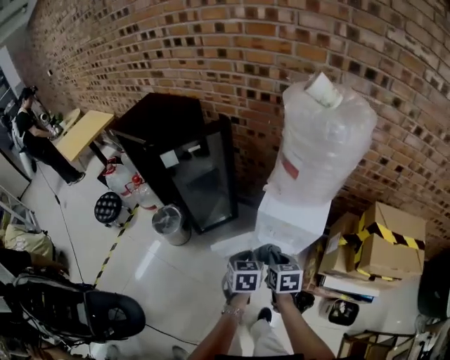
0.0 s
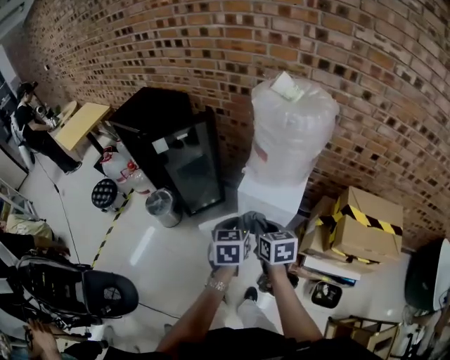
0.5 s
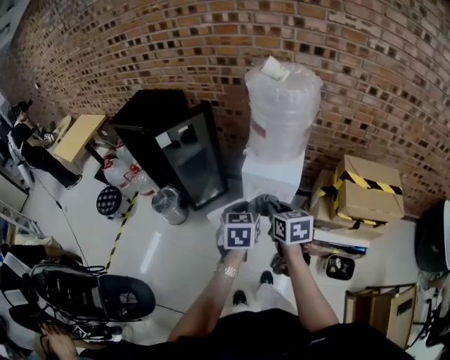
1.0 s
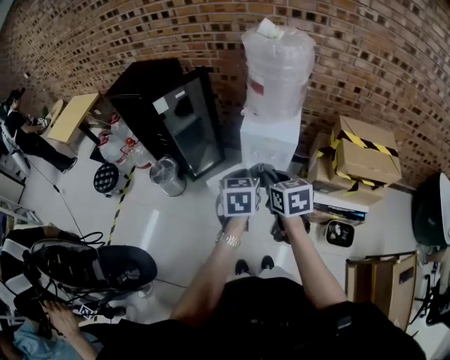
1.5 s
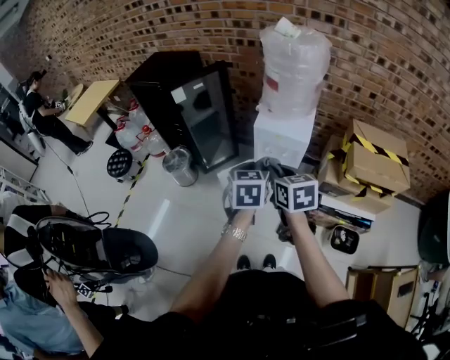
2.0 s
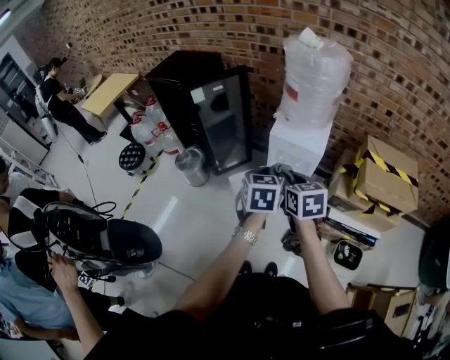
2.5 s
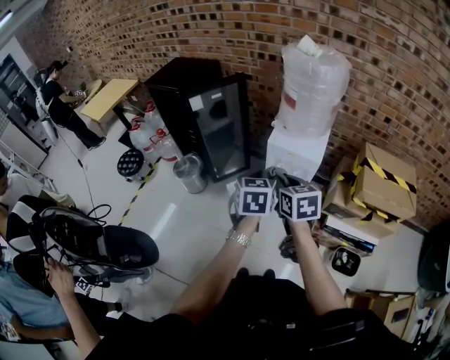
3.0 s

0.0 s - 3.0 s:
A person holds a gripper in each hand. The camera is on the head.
0.0 s - 1.5 s: The two grippers go roughly 25 cm upward and backward.
1.5 s - 3.0 s: There are only small adjustments of the grippers.

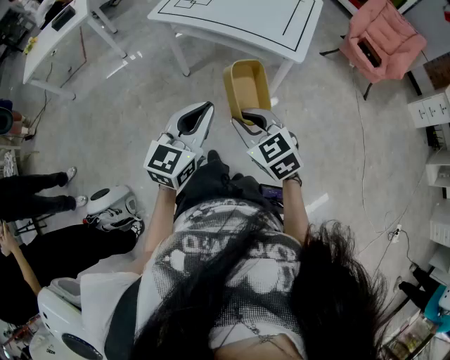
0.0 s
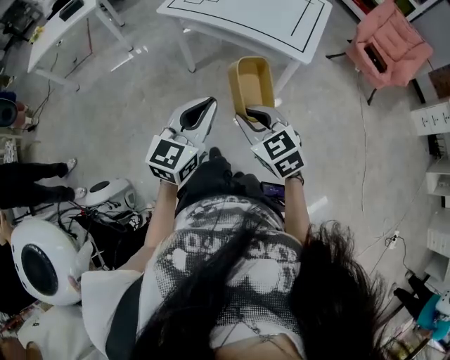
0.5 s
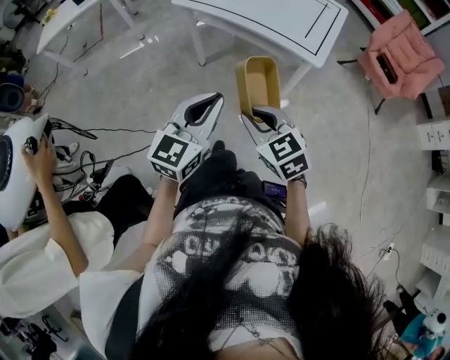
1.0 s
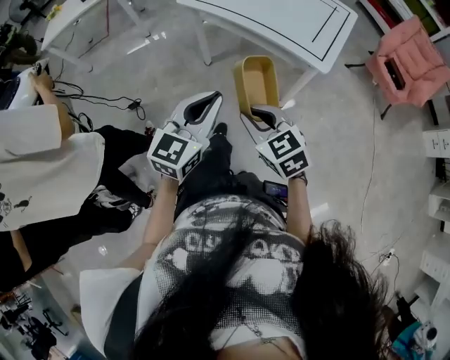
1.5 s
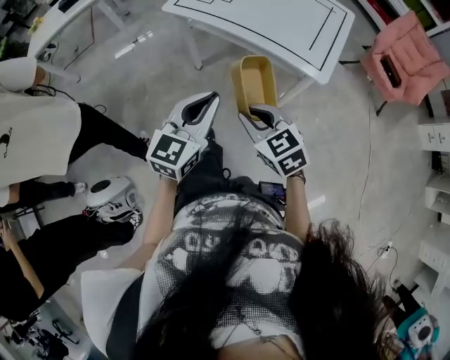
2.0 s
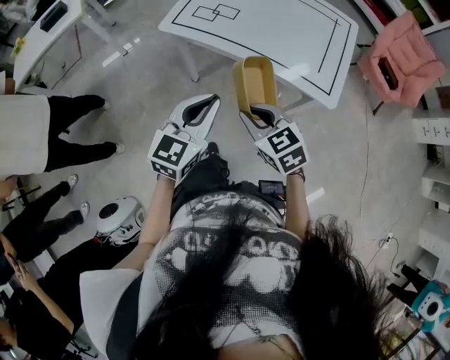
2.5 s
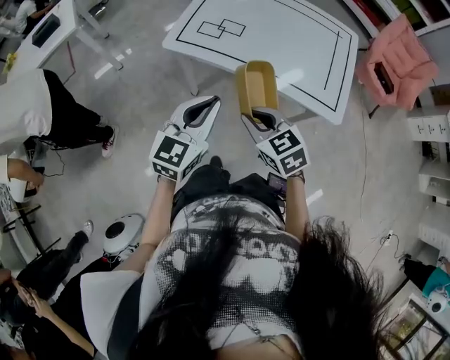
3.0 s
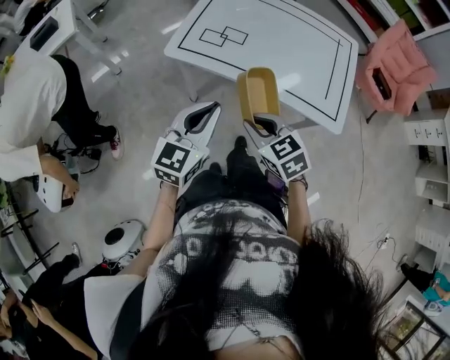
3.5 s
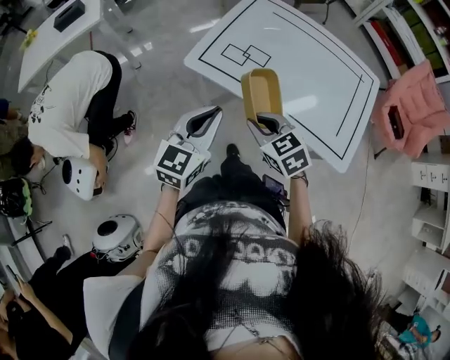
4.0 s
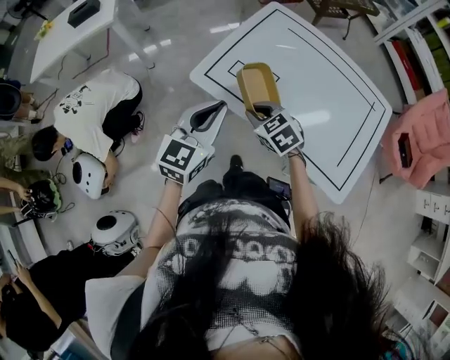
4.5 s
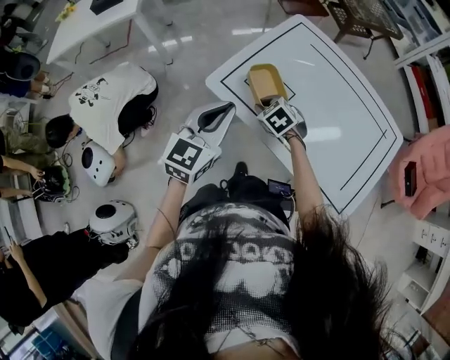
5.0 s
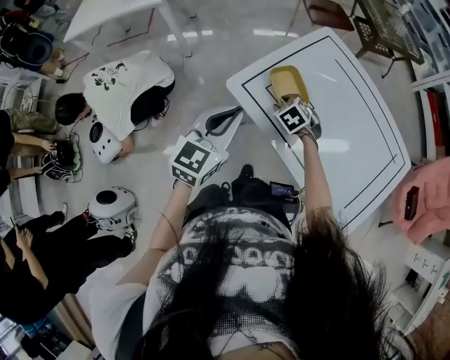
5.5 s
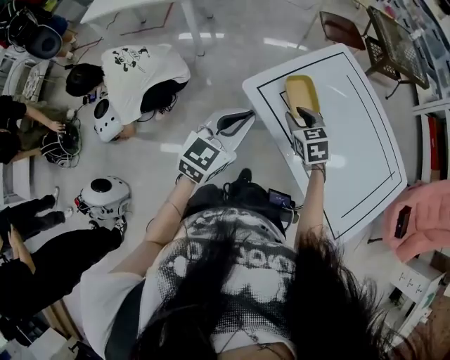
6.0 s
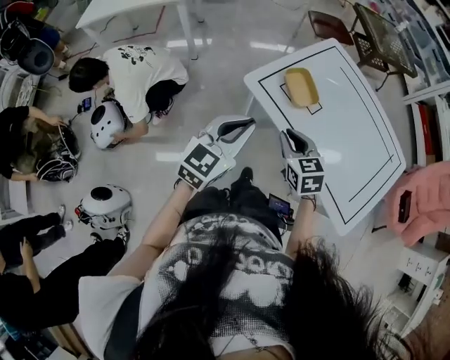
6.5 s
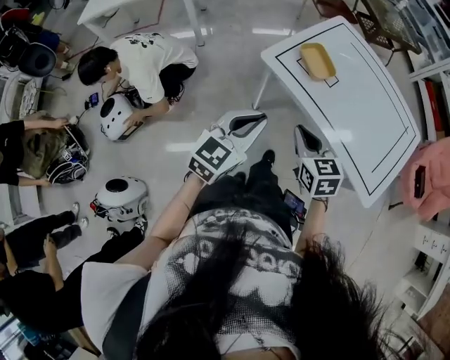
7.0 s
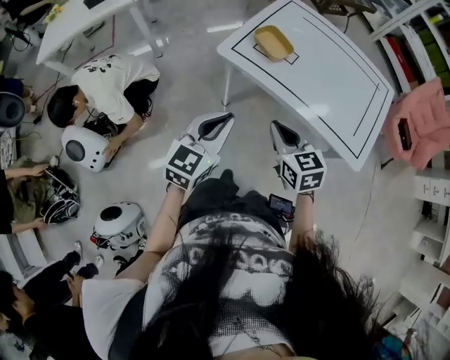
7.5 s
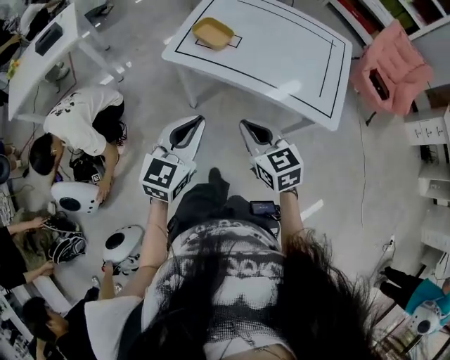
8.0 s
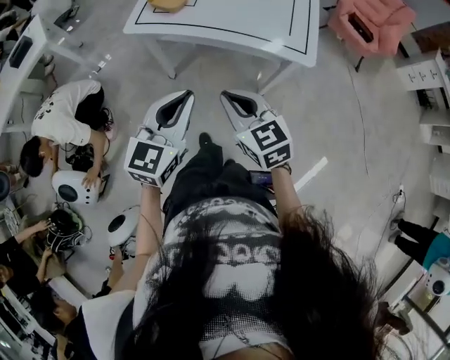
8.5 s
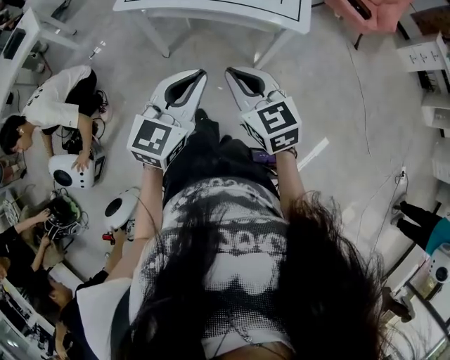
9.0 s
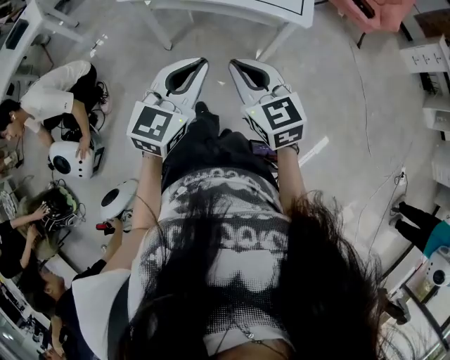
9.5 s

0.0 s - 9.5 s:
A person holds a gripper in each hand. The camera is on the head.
0.0 s - 2.0 s: The two grippers go approximately 15 cm forward.
2.0 s - 4.0 s: The left gripper is displaced forward and to the left by roughly 40 cm; the right gripper is displaced forward by about 35 cm.
4.0 s - 5.5 s: The right gripper goes approximately 30 cm forward and downward, swivels approximately 30 degrees, and opens its fingers. The left gripper is displaced forward by roughly 15 cm.
5.5 s - 7.5 s: The left gripper heads backward, covering some 20 cm, while the right gripper heads backward and upward, covering some 40 cm, angles its fingers upward, by roughly 30 degrees, and closes its fingers.
7.5 s - 9.5 s: The right gripper heads backward and to the right, covering approximately 30 cm. The left gripper shifts roughly 30 cm to the right and backward.

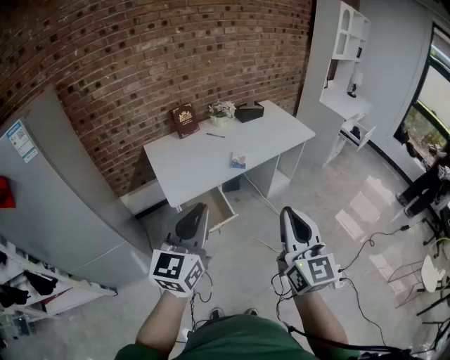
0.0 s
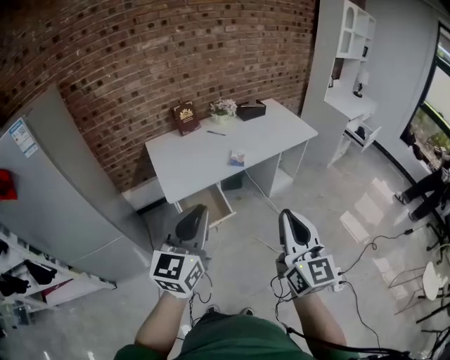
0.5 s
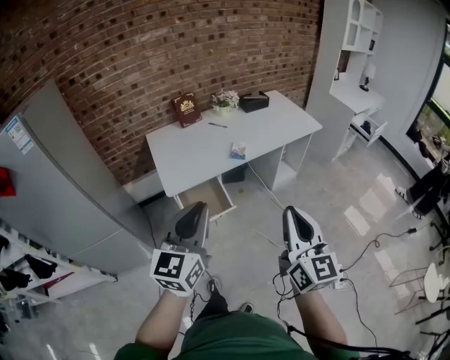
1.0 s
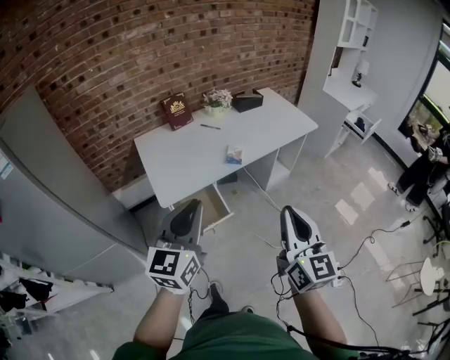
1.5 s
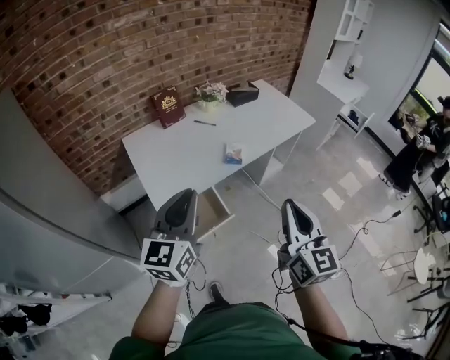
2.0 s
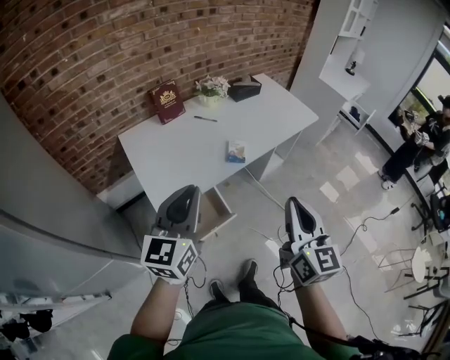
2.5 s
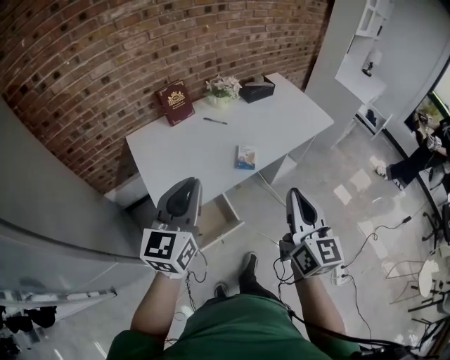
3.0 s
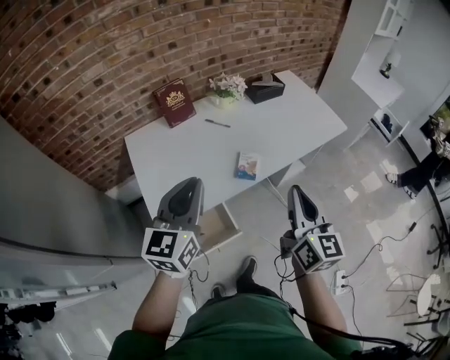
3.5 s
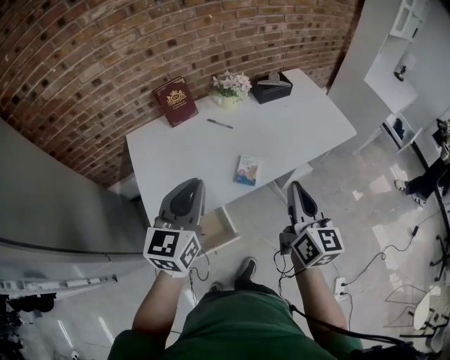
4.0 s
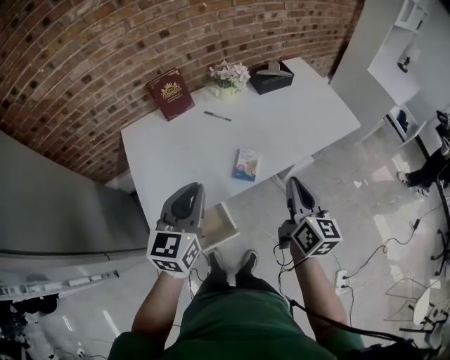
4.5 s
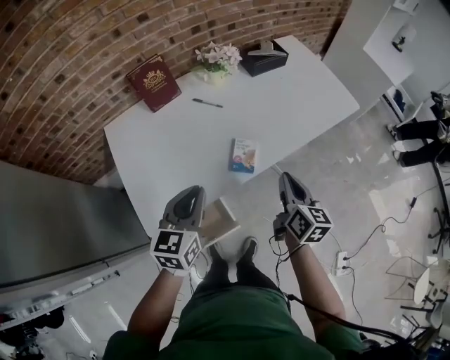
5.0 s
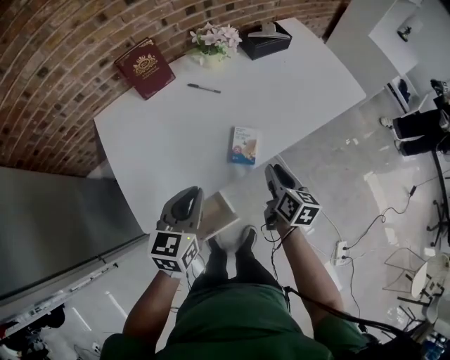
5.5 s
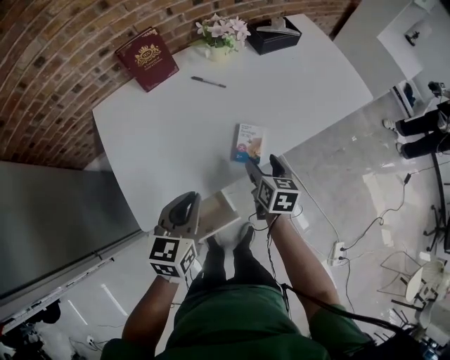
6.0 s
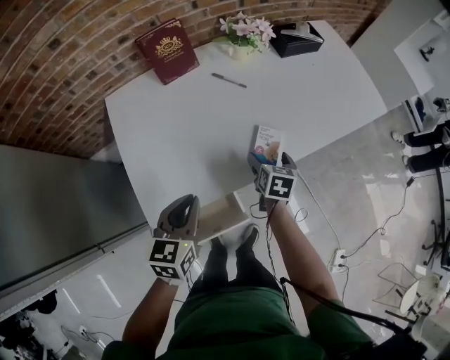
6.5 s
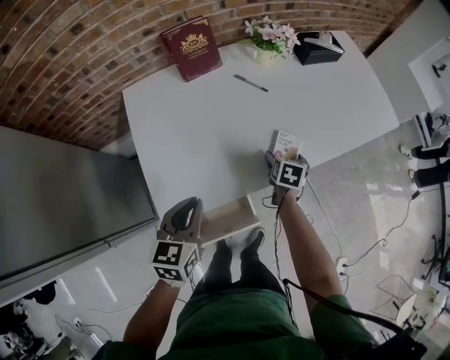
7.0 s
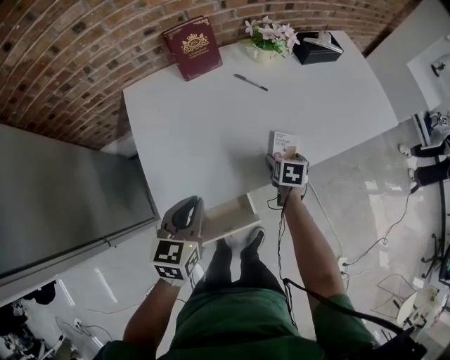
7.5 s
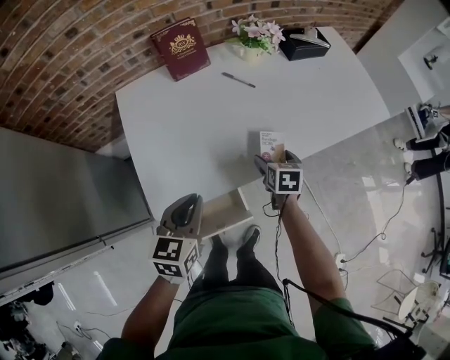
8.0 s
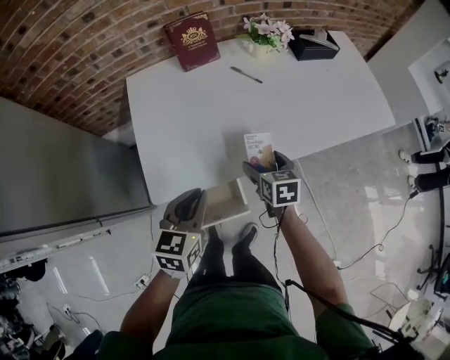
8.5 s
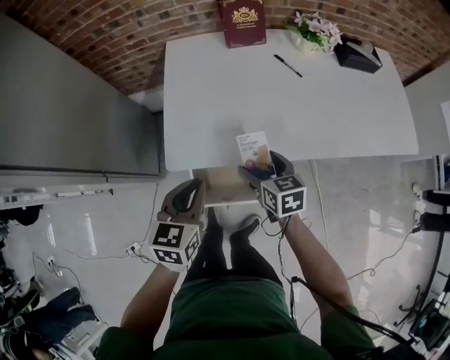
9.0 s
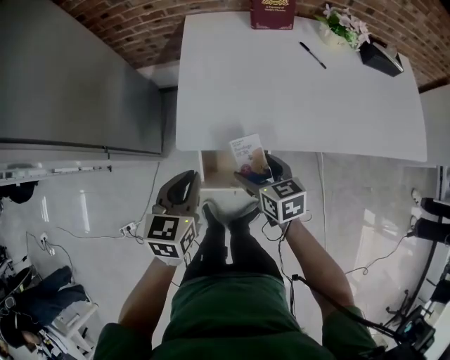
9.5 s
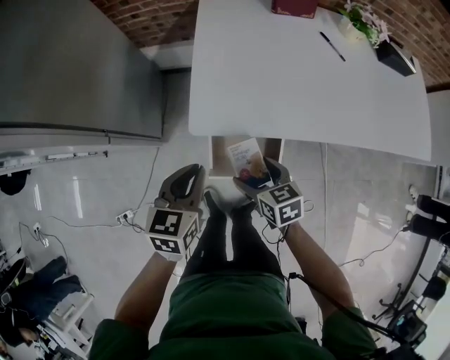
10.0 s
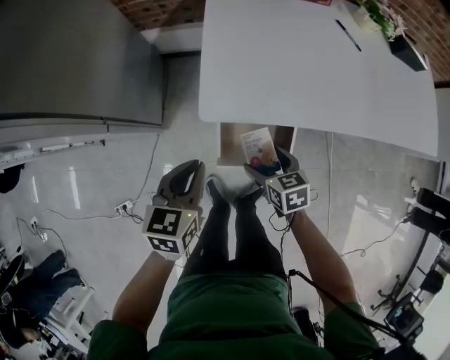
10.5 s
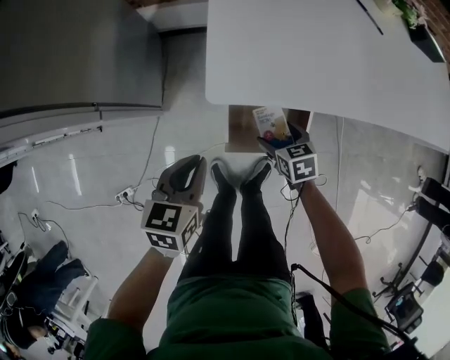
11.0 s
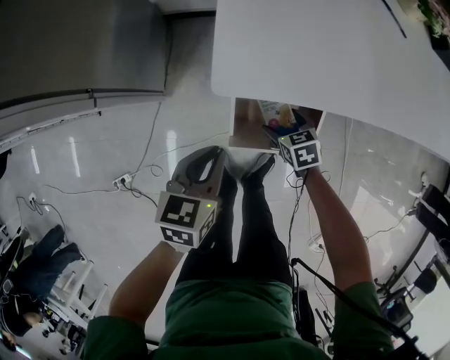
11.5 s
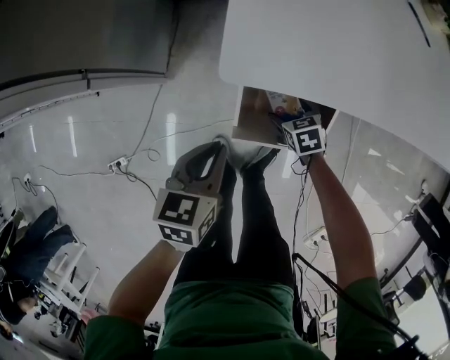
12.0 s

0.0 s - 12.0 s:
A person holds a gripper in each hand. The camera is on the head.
0.0 s - 2.0 s: Both grippers move forward, approximately 15 cm.
2.0 s - 4.0 s: The grippers both shift forward by about 25 cm.
4.0 s - 6.0 s: The right gripper shifts approximately 30 cm downward and forward, points its fingers roughly 30 degrees further downward, and opens its fingers. The left gripper goes about 20 cm downward, and rotates some 20 degrees.
6.0 s - 8.0 s: The left gripper shifts some 5 cm to the left.
8.0 s - 10.0 s: The right gripper ends up roughly 35 cm from where it was, and swivels about 50 degrees, while the left gripper shifts by some 20 cm, and rotates about 20 degrees.
10.0 s - 12.0 s: The right gripper travels downward by some 25 cm, and swivels about 20 degrees, while the left gripper moves downward, approximately 15 cm.

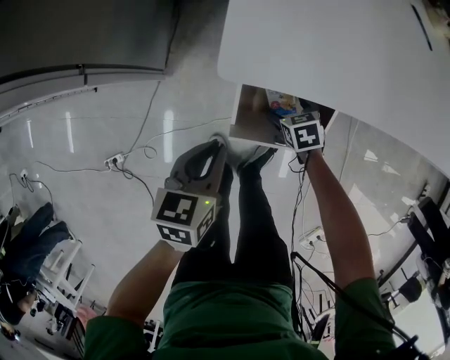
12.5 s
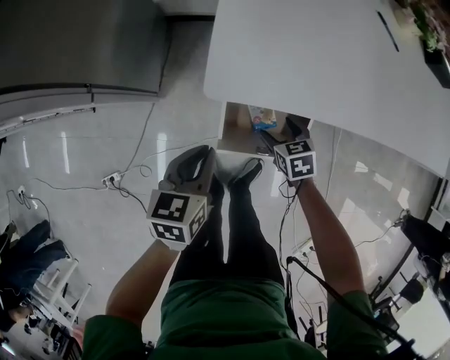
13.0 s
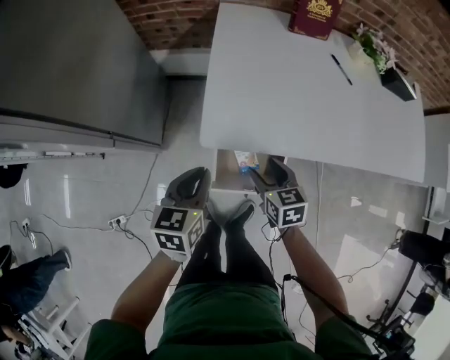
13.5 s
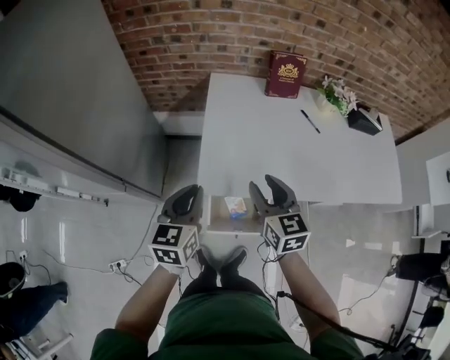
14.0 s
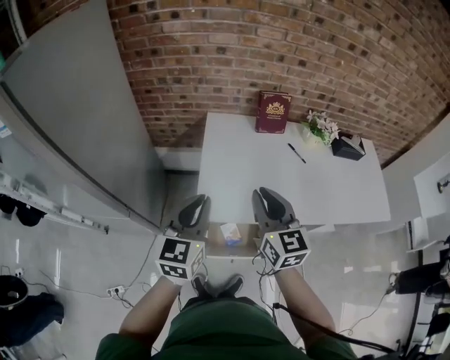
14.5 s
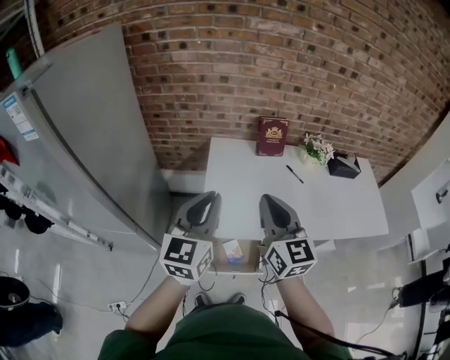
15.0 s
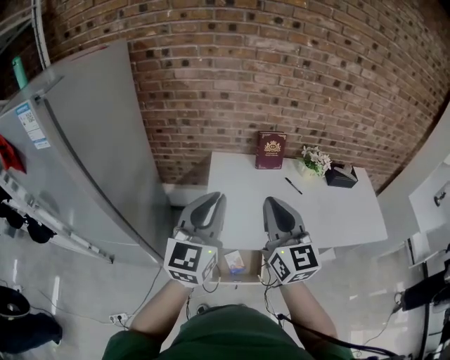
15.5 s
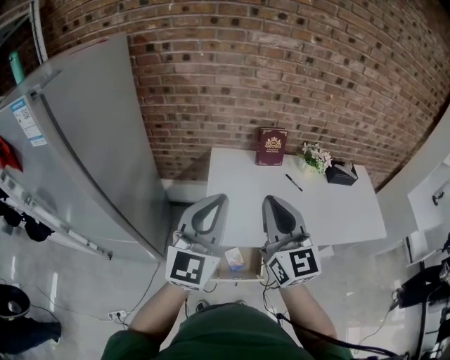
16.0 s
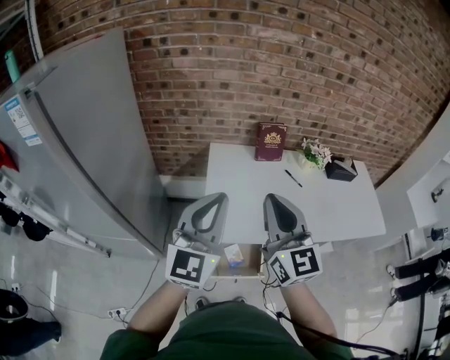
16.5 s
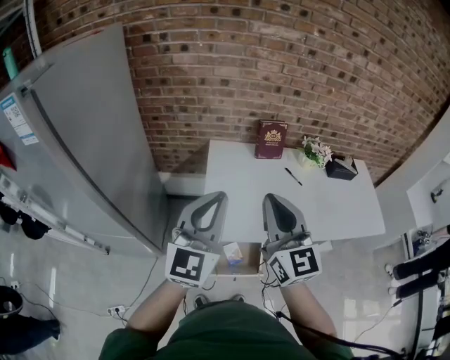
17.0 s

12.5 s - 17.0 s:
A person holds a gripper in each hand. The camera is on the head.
12.5 s - 14.5 s: The left gripper travels upward by about 40 cm, and points its fingers some 30 degrees further upward; the right gripper shifts roughly 60 cm upward, points its fingers roughly 60 degrees further upward, and closes.
14.5 s - 17.0 s: The grippers both shift upward by about 15 cm. The left gripper turns by roughly 20 degrees.
